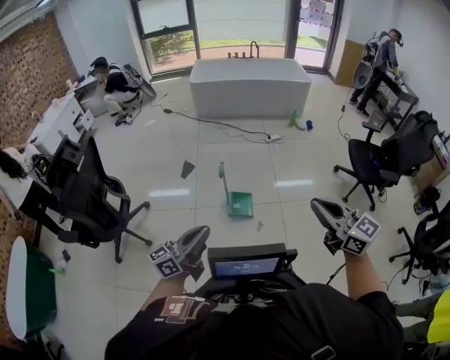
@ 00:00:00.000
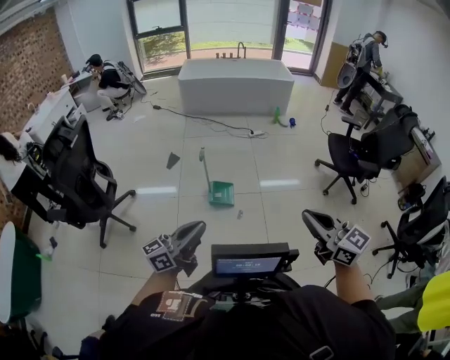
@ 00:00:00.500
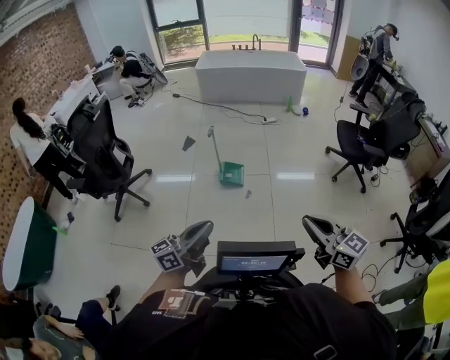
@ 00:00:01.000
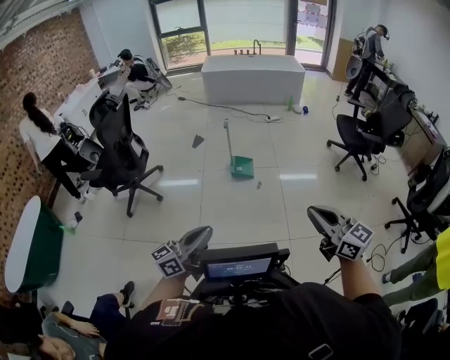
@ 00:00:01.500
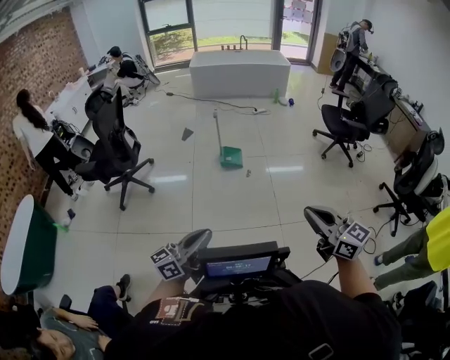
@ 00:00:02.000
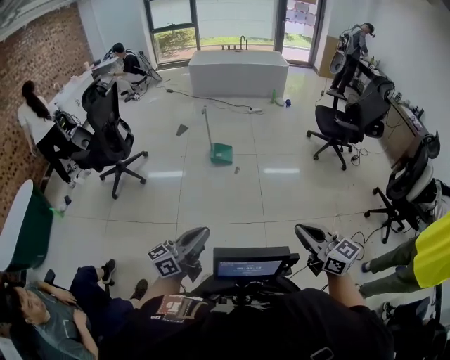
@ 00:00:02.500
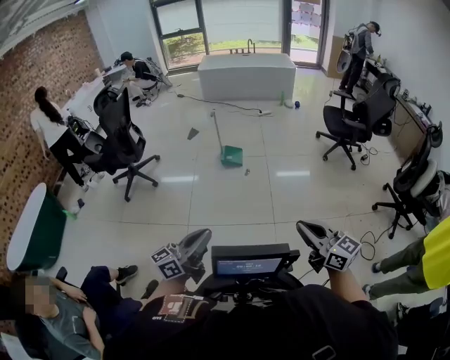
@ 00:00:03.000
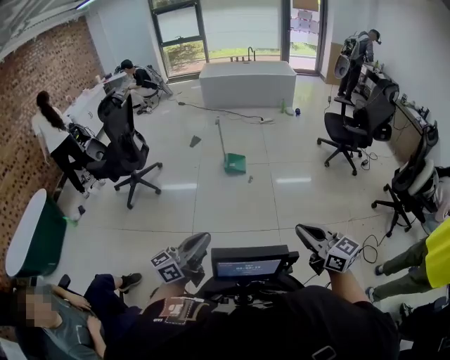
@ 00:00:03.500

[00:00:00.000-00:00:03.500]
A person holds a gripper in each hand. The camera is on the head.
00:00:00.000 to 00:00:02.000: Both grippers are carried backward, roughly 1 m.
00:00:02.000 to 00:00:03.500: The grippers both shift to the right and backward by about 25 cm.

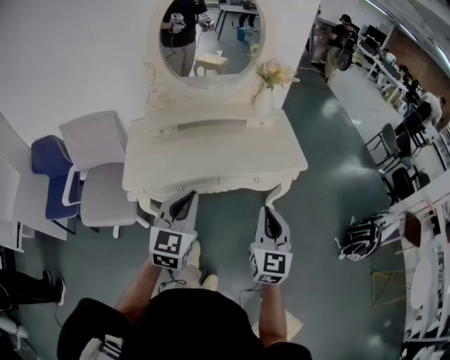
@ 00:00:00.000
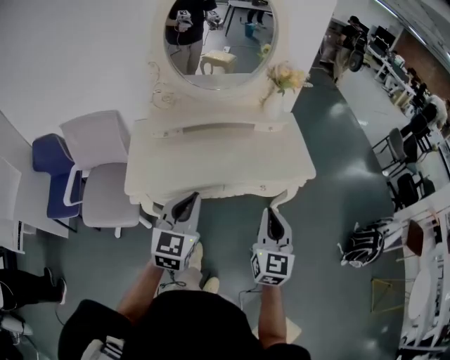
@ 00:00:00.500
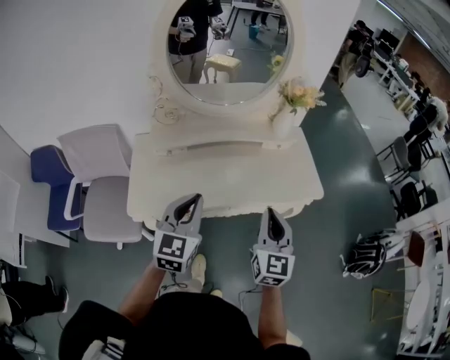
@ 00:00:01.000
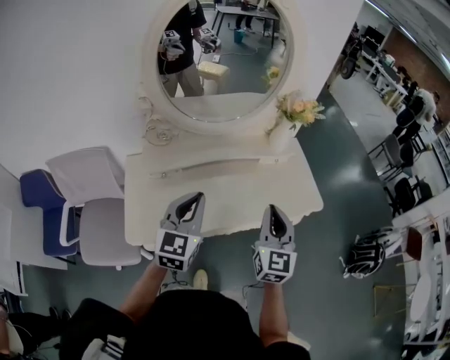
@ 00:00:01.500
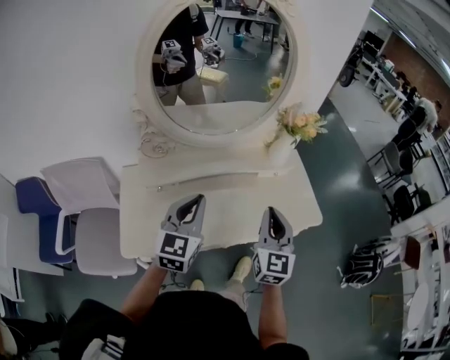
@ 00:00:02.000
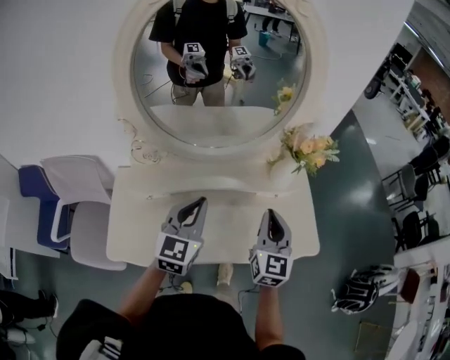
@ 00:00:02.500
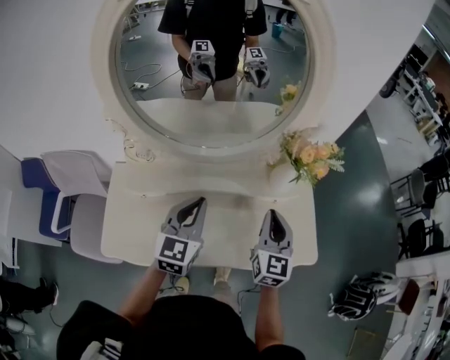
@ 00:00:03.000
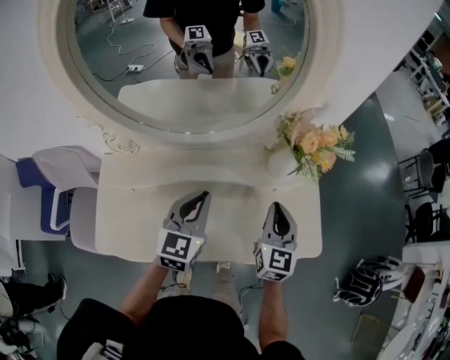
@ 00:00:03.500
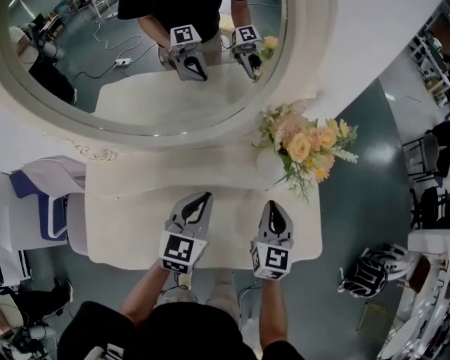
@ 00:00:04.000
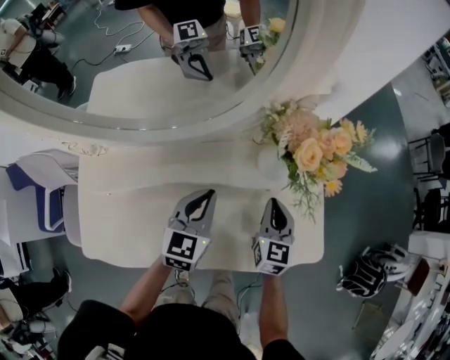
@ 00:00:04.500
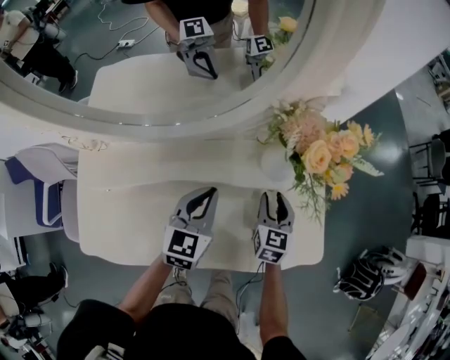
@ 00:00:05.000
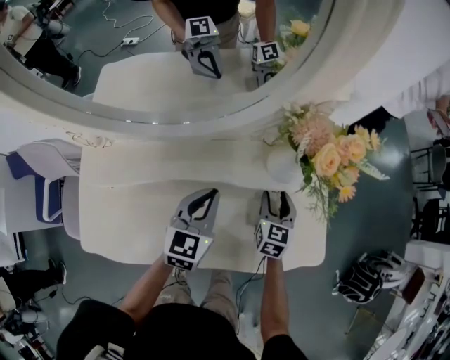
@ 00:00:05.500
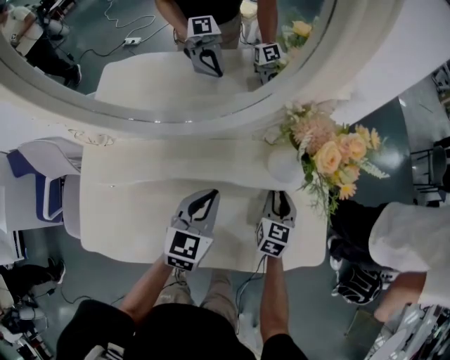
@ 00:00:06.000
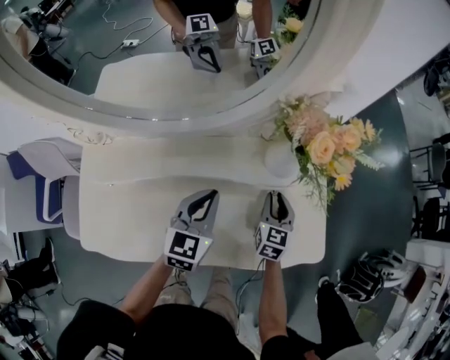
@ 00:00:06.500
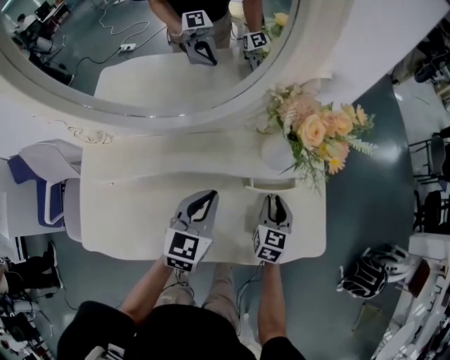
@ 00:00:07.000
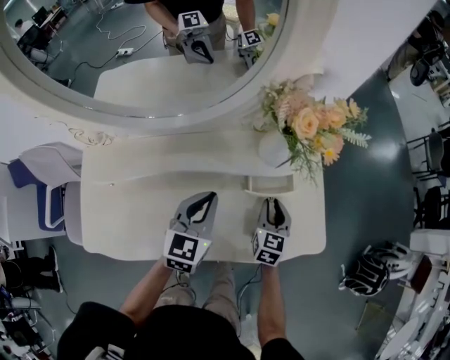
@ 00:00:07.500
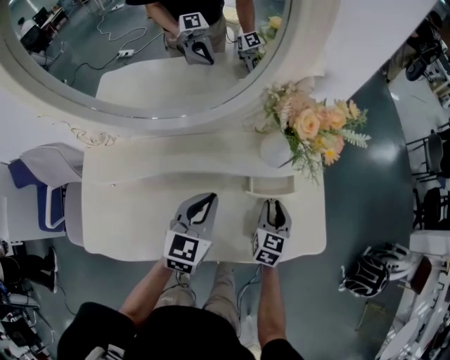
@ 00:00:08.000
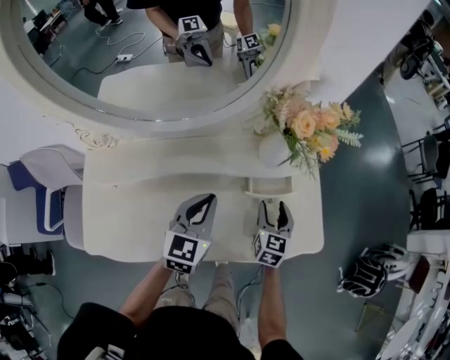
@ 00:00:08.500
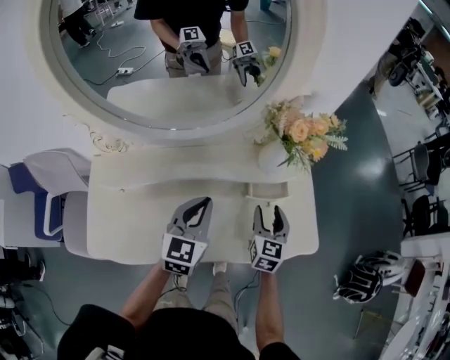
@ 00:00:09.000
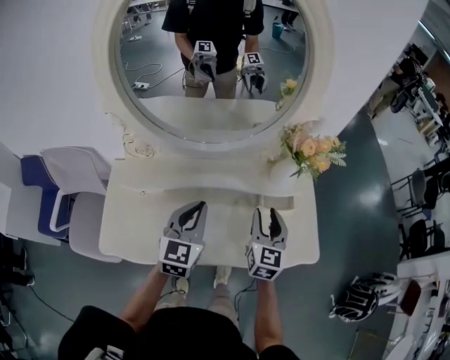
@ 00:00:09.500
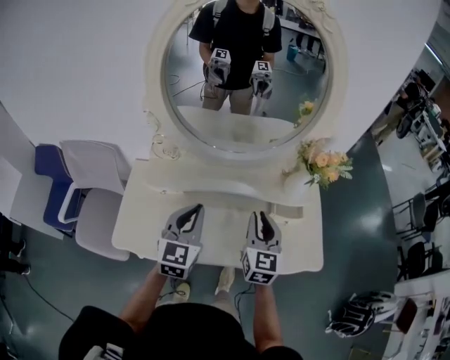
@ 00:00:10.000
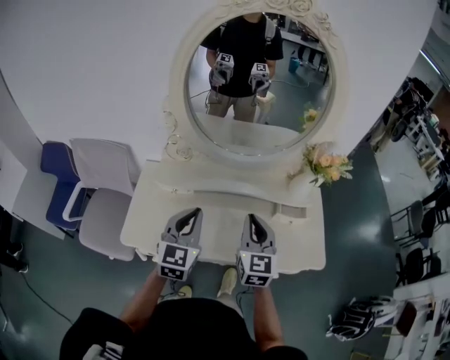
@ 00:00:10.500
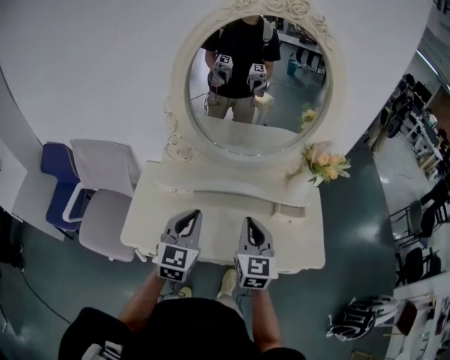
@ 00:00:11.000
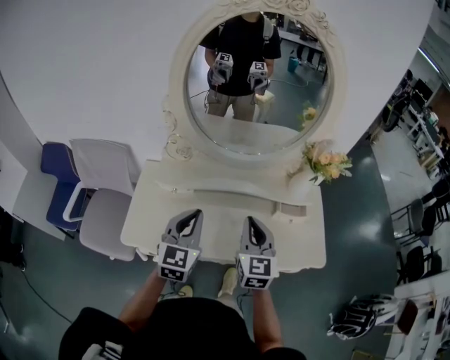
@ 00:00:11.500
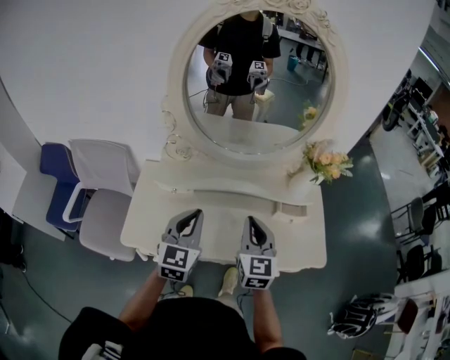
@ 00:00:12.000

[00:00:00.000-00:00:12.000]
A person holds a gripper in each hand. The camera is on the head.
00:00:00.000 to 00:00:02.000: Both grippers move forward, some 30 cm.
00:00:02.000 to 00:00:04.000: The left gripper goes about 30 cm forward, to the right and downward, while the right gripper goes some 35 cm forward, downward and to the right.
00:00:04.000 to 00:00:06.000: The right gripper moves downward and forward, about 15 cm, and opens, while the left gripper moves downward, about 5 cm.
00:00:06.000 to 00:00:08.000: The right gripper shifts roughly 5 cm backward.
00:00:08.000 to 00:00:10.000: The right gripper goes some 30 cm upward and to the left, turns by roughly 30 degrees, and opens and closes again, while the left gripper heads to the left, upward and backward, covering about 25 cm.
00:00:10.000 to 00:00:12.000: The right gripper heads to the left and backward, covering about 10 cm. Meanwhile the left gripper moves approximately 5 cm.

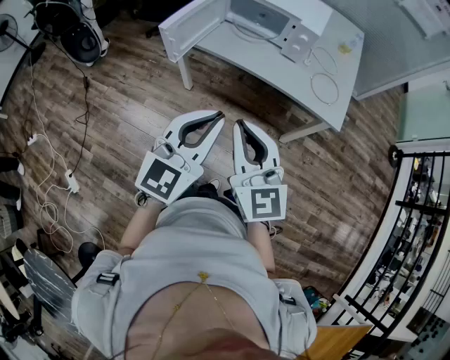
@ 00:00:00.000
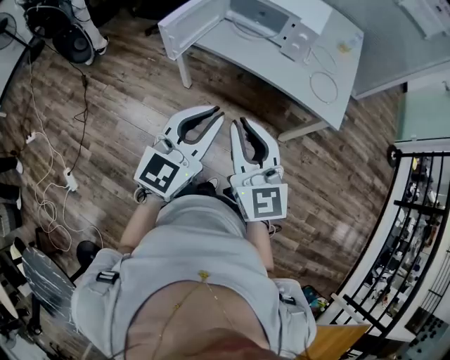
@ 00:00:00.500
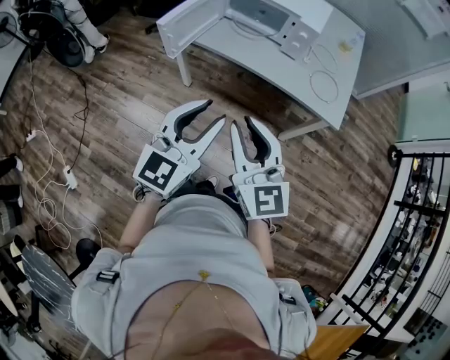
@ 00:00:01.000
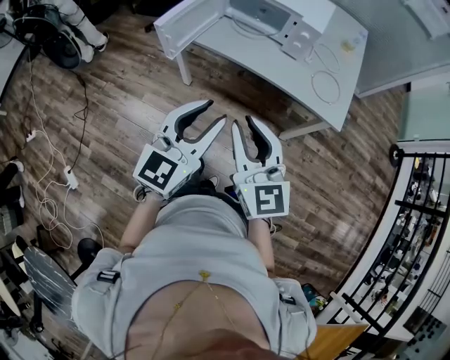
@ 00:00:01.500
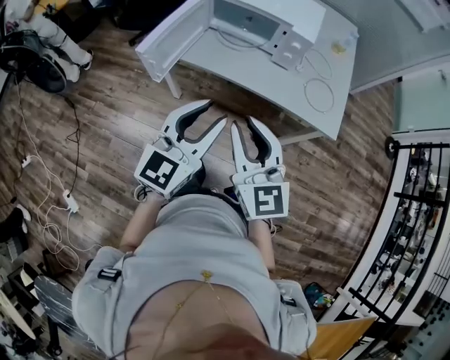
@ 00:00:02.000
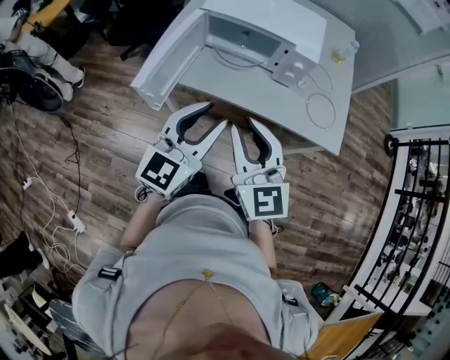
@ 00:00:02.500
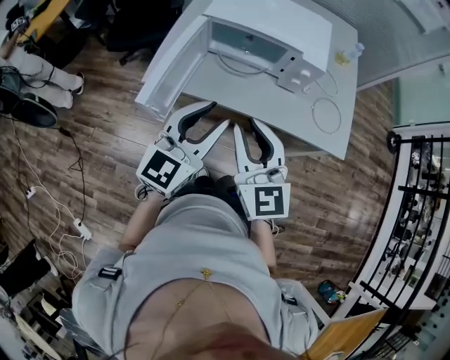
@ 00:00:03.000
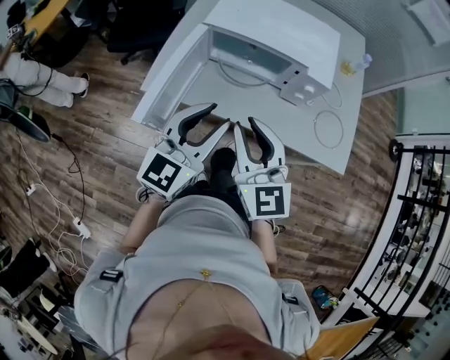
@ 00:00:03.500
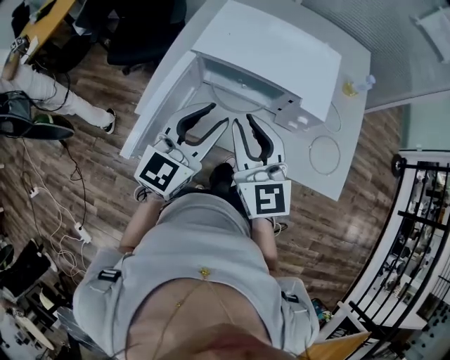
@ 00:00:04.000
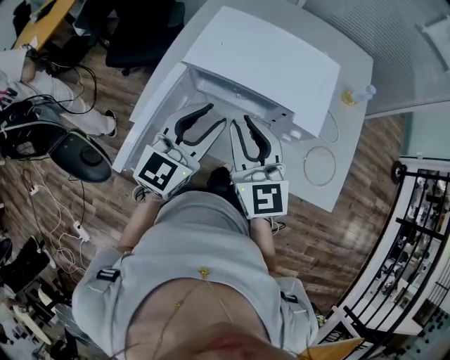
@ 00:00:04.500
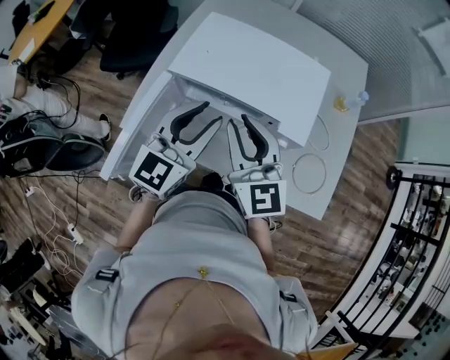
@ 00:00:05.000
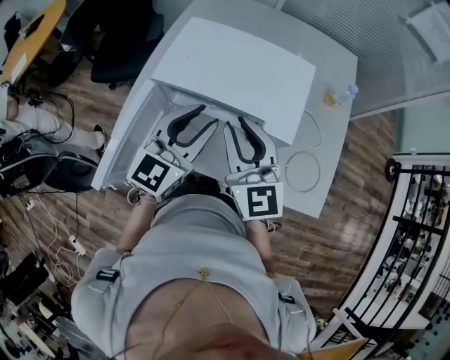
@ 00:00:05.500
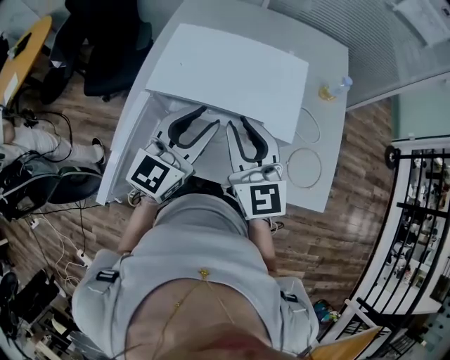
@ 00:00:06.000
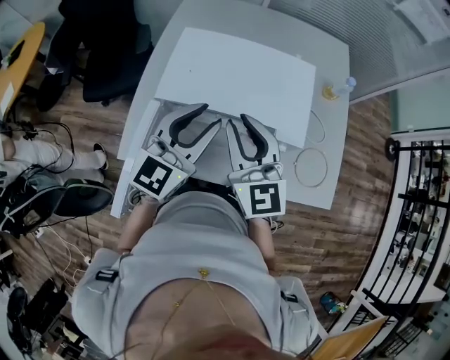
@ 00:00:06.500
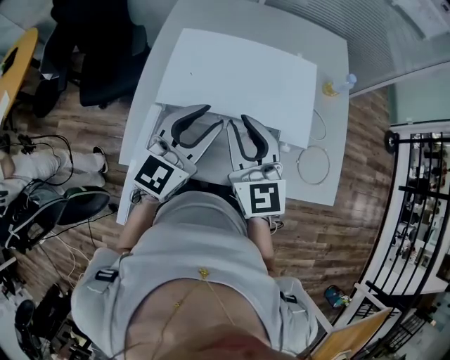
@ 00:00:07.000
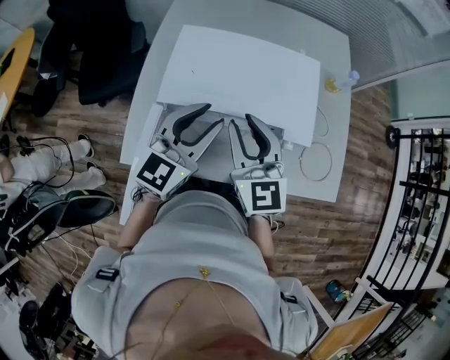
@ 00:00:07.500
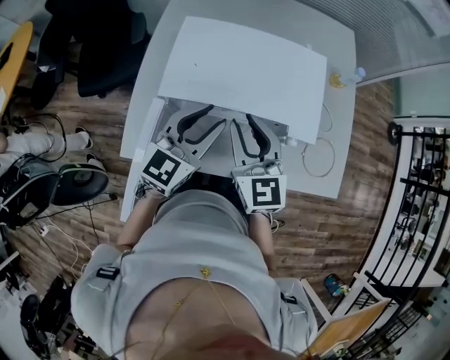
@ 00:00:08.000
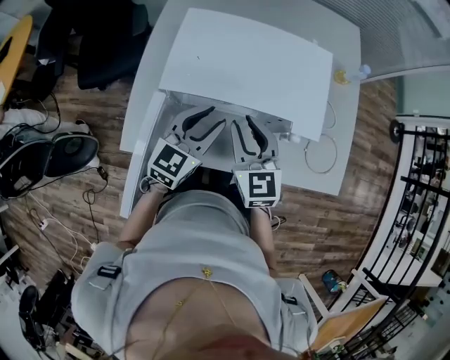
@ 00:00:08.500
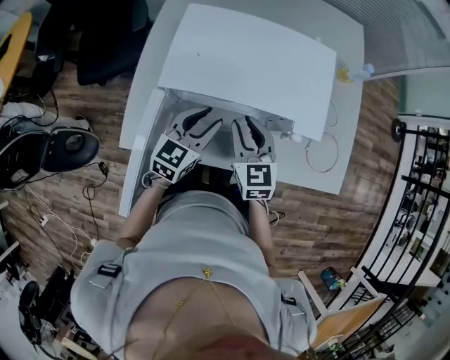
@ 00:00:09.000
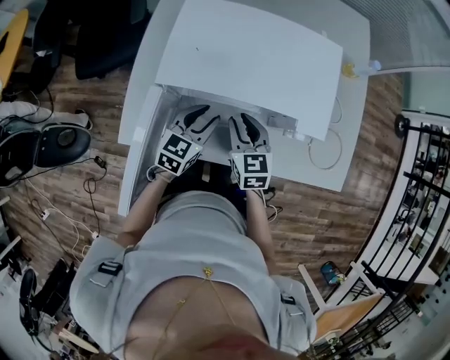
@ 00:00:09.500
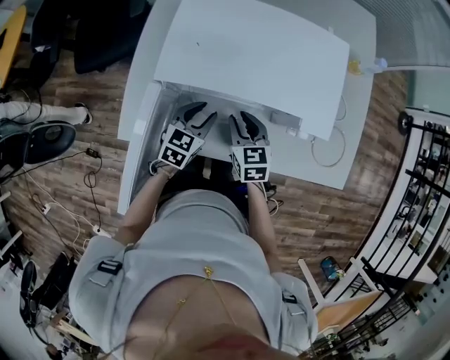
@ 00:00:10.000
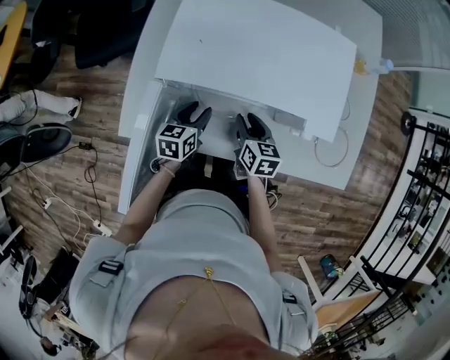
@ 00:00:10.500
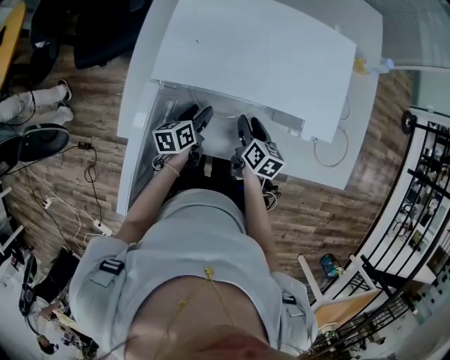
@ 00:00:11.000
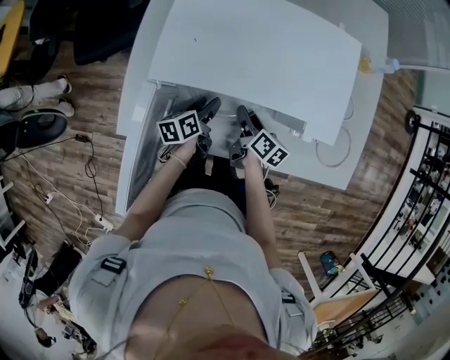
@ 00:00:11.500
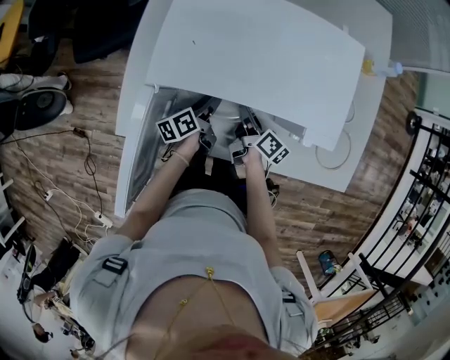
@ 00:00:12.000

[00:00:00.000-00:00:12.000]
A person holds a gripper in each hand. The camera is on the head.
00:00:00.000 to 00:00:02.000: The two grippers go approximately 10 cm forward. The left gripper opens its fingers.
00:00:02.000 to 00:00:04.000: The grippers both shift forward by approximately 30 cm.
00:00:04.000 to 00:00:06.000: The grippers both shift forward and to the right by approximately 10 cm.
00:00:06.000 to 00:00:08.000: Both grippers travel together to the left, roughly 5 cm.
00:00:08.000 to 00:00:10.000: The two grippers go some 20 cm downward. The left gripper swivels approximately 30 degrees. Meanwhile the right gripper rotates roughly 30 degrees.
00:00:10.000 to 00:00:12.000: The two grippers go roughly 10 cm downward. The left gripper rolls counterclockwise, seen from behind, by some 60 degrees; the right gripper rotates around the line of its fingers by roughly 60 degrees, clockwise from behind.
